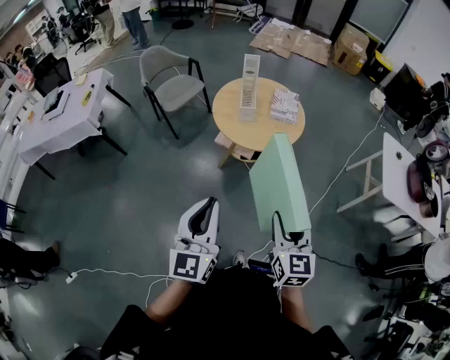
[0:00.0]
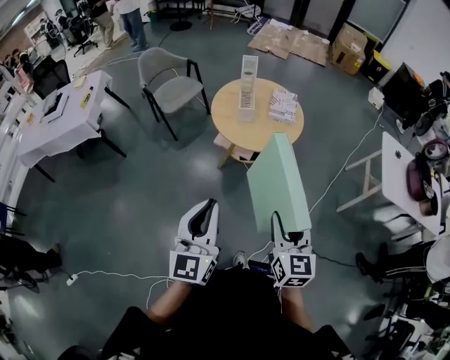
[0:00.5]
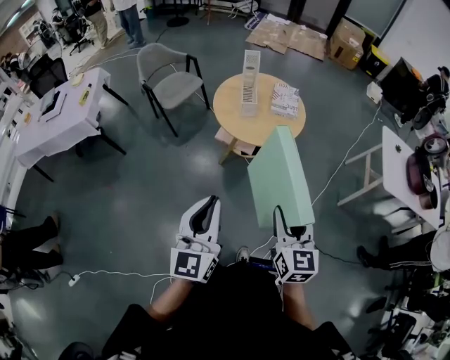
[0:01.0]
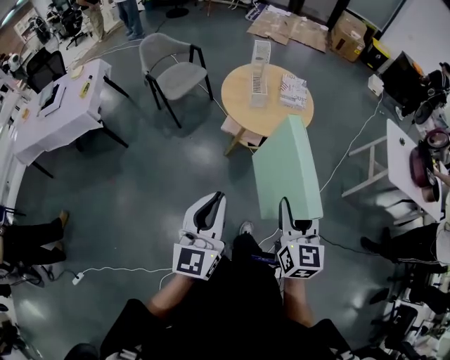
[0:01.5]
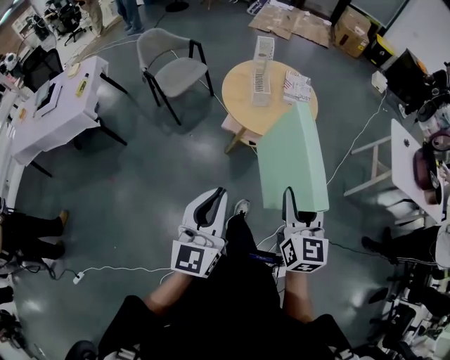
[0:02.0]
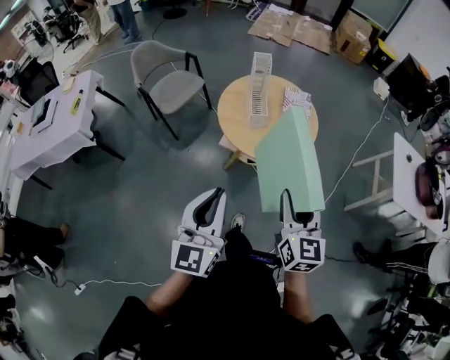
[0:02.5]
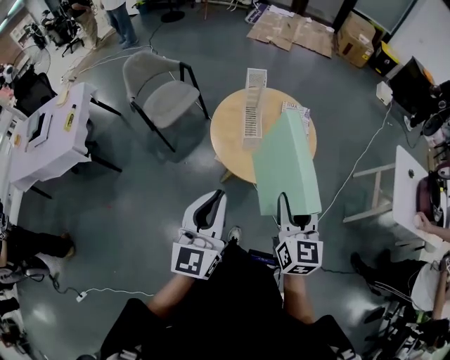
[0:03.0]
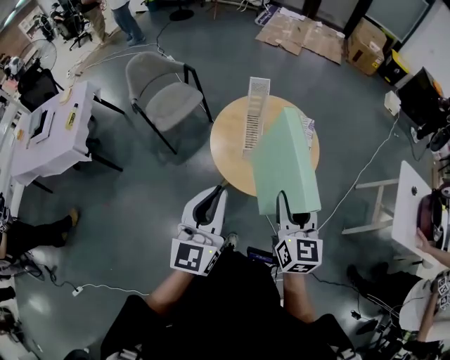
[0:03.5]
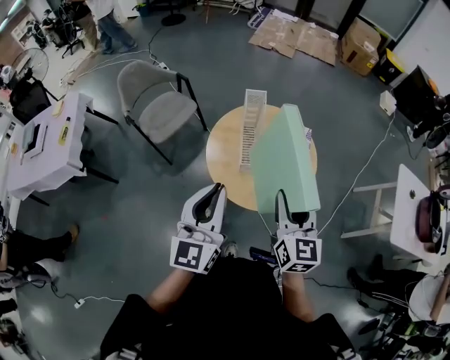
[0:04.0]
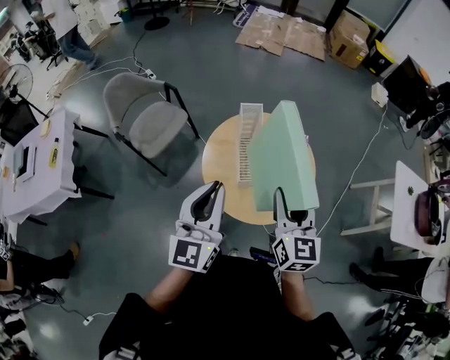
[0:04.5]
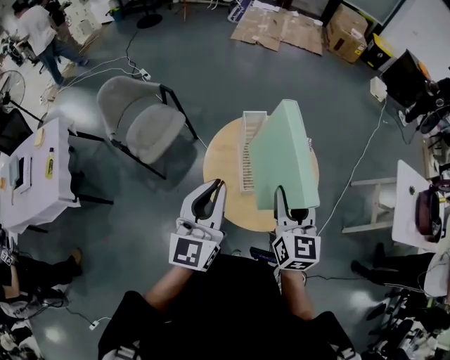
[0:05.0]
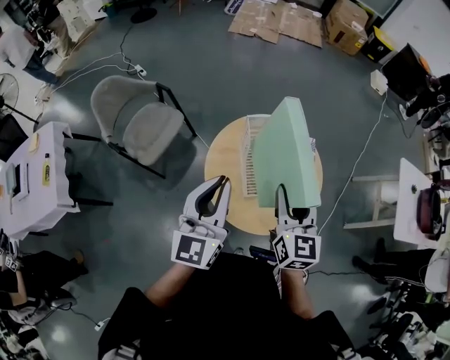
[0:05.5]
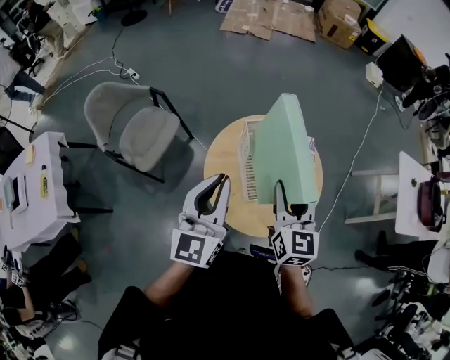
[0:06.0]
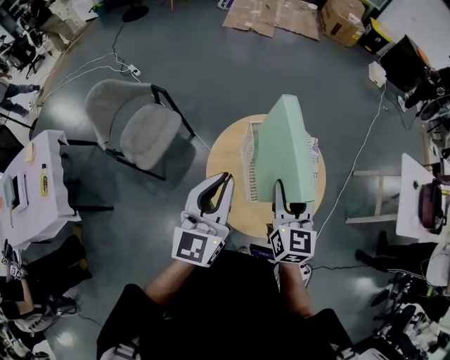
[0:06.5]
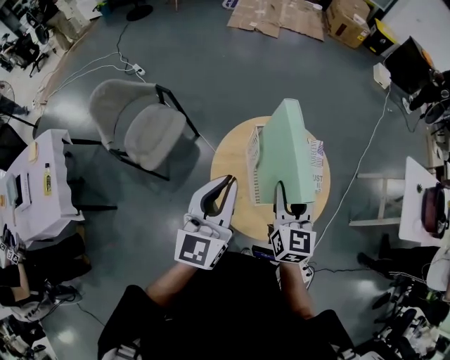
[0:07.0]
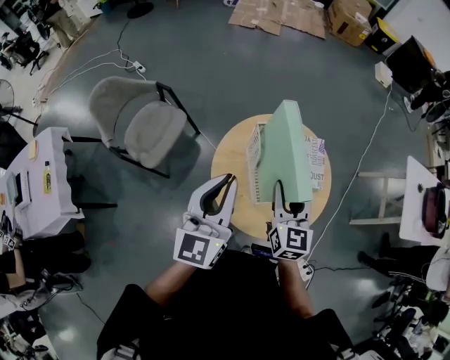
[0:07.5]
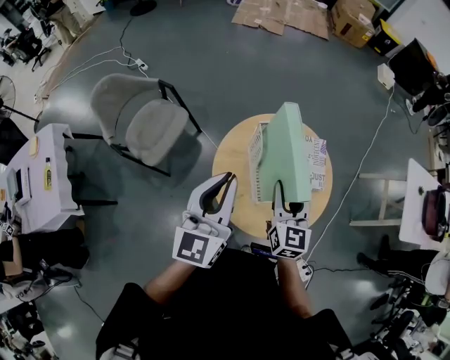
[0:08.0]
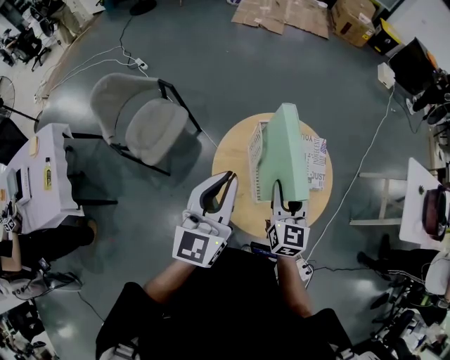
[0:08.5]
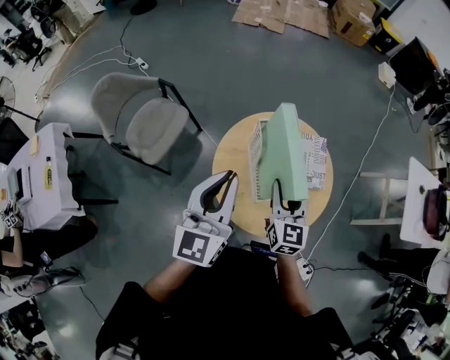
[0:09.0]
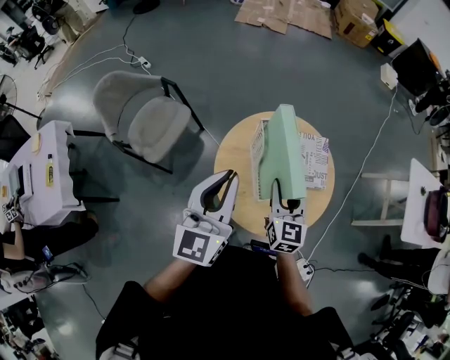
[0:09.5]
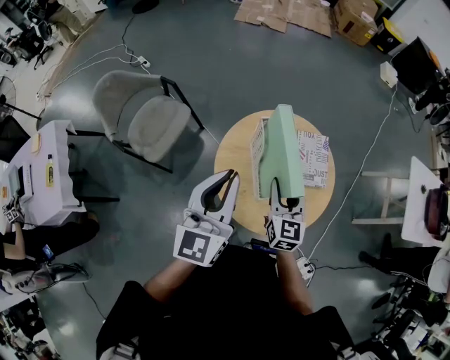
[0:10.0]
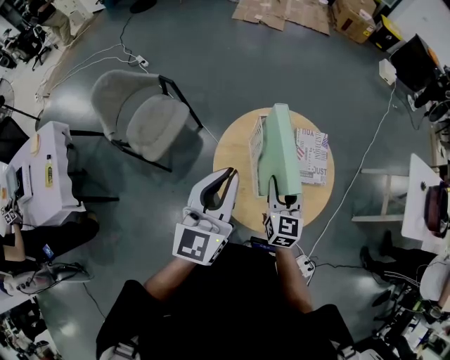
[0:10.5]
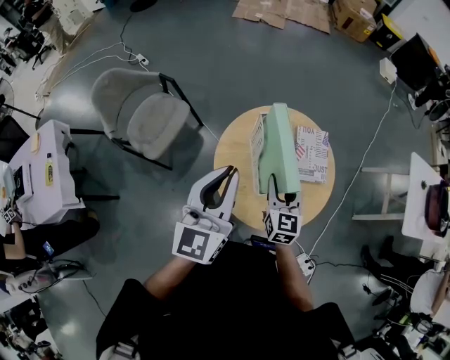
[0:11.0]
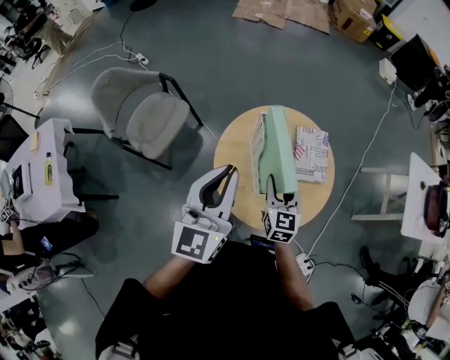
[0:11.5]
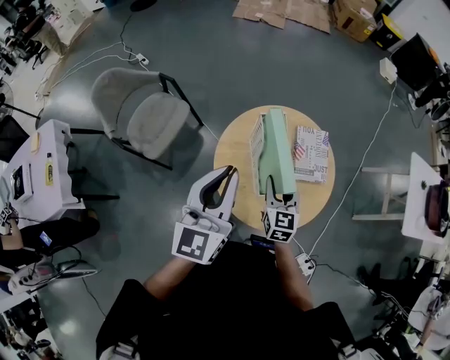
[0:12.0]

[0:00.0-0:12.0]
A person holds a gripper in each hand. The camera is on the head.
0:00.0 to 0:02.0: The right gripper travels to the left and forward by some 10 cm, while the left gripper heads to the left, covering about 10 cm.
0:02.0 to 0:04.0: Both grippers are carried forward, about 40 cm.
0:04.0 to 0:06.0: The right gripper heads forward and to the left, covering about 20 cm. Meanwhile the left gripper goes some 25 cm forward.
0:06.0 to 0:08.0: The right gripper moves downward, approximately 5 cm.
0:08.0 to 0:10.0: There are only small adjustments of the grippers.
0:10.0 to 0:12.0: The right gripper is displaced downward by some 5 cm.

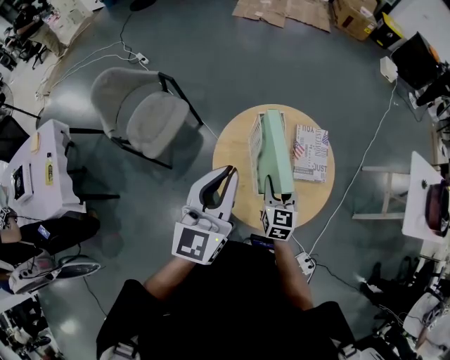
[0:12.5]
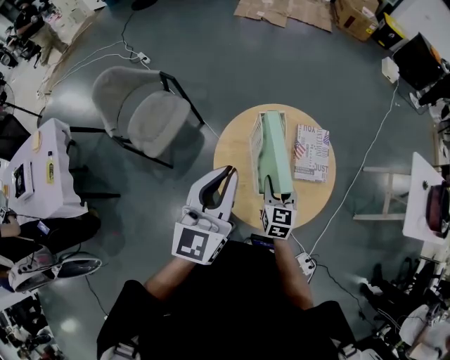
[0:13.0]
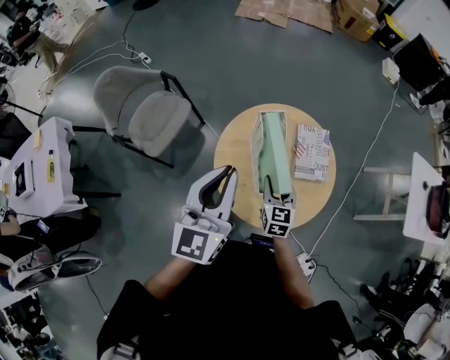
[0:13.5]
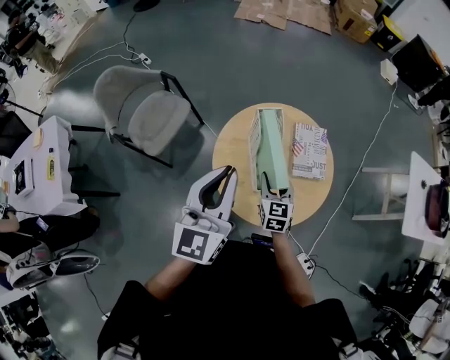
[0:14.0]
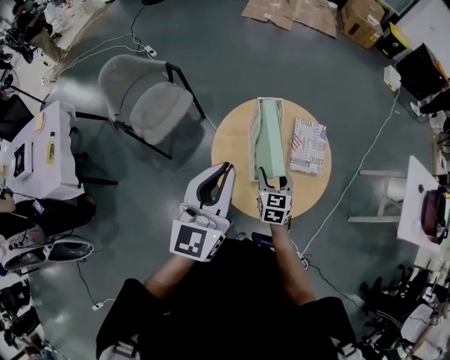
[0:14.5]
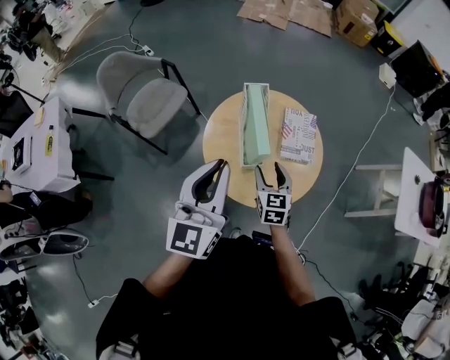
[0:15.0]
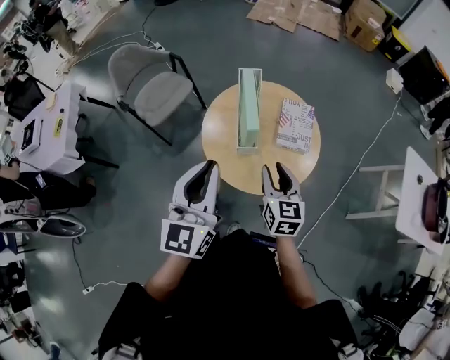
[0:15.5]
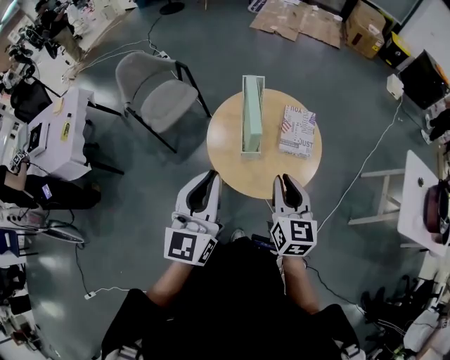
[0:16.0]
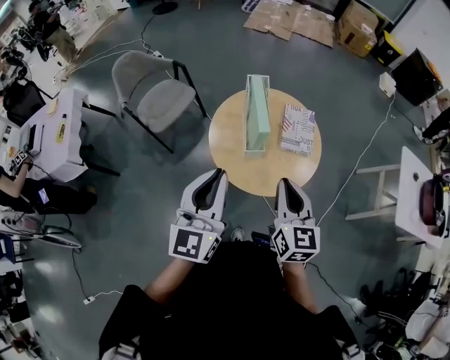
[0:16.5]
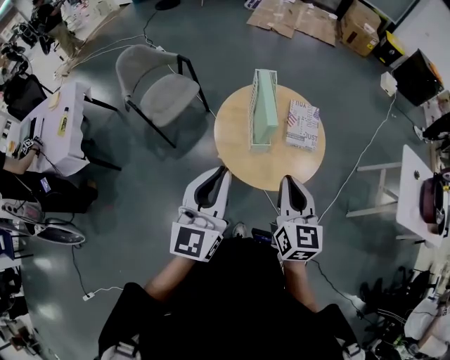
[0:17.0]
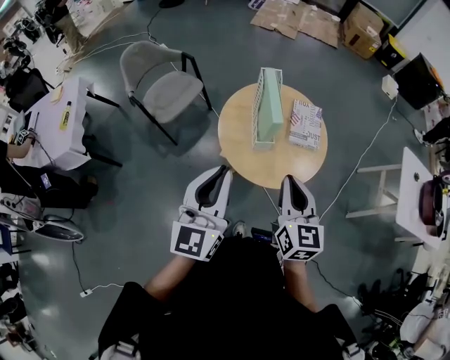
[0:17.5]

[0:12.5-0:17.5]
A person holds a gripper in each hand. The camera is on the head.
0:12.5 to 0:15.0: The right gripper travels backward by about 10 cm, and opens. The left gripper travels backward and to the right by about 15 cm.
0:15.0 to 0:17.5: The right gripper shifts about 30 cm upward and backward, and closes its fingers. The left gripper travels backward by roughly 15 cm.

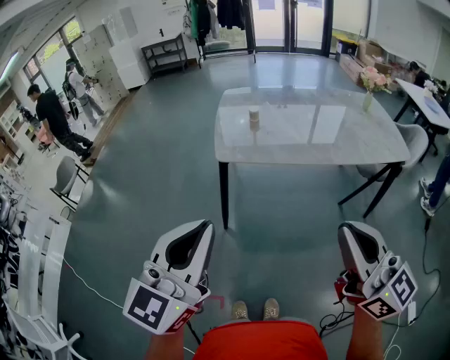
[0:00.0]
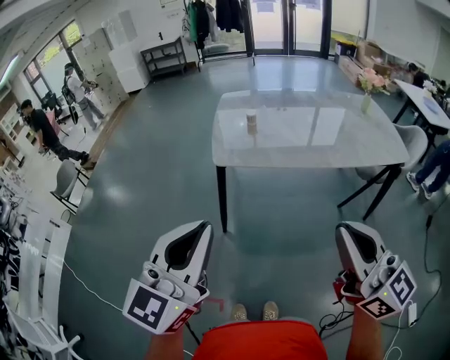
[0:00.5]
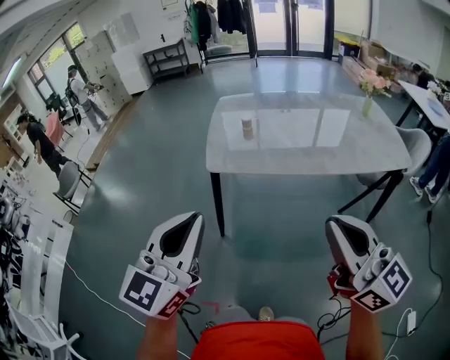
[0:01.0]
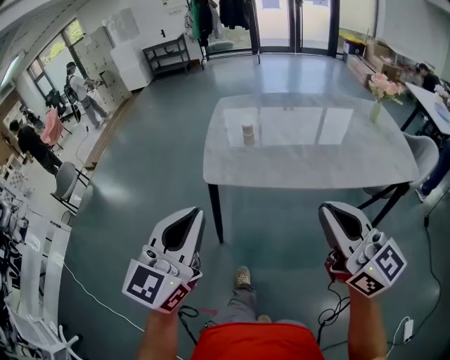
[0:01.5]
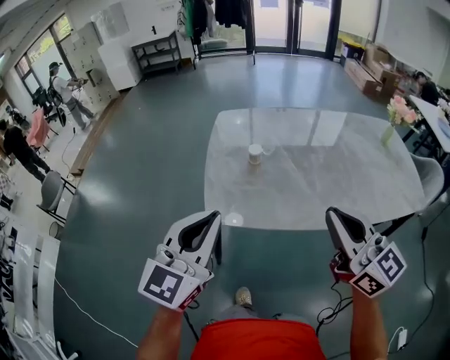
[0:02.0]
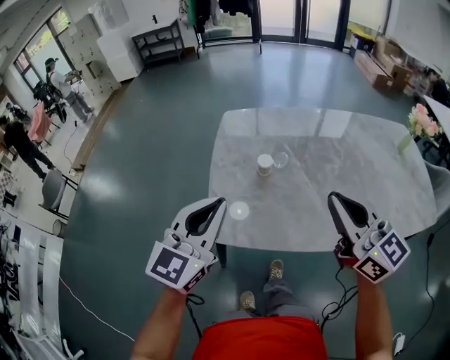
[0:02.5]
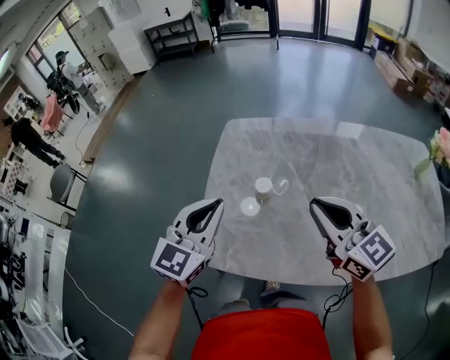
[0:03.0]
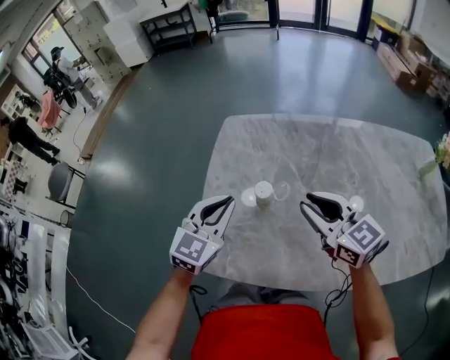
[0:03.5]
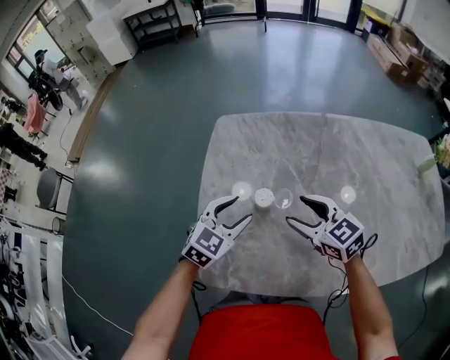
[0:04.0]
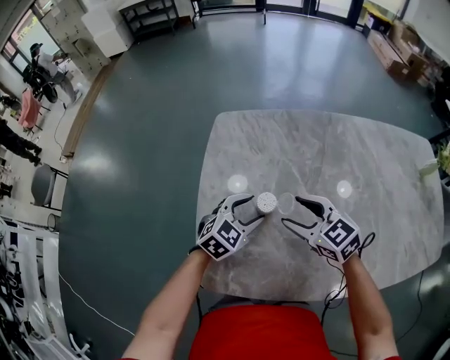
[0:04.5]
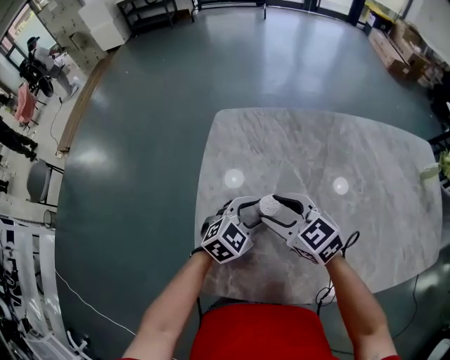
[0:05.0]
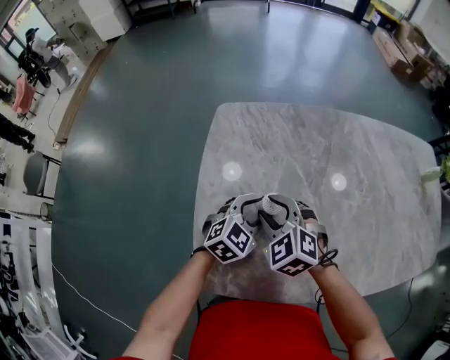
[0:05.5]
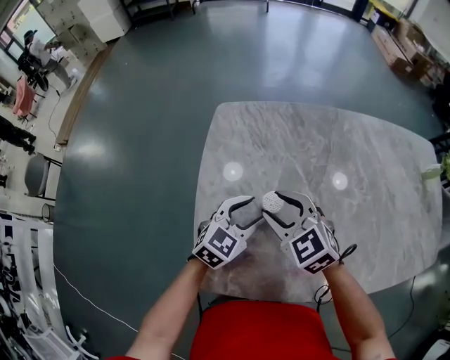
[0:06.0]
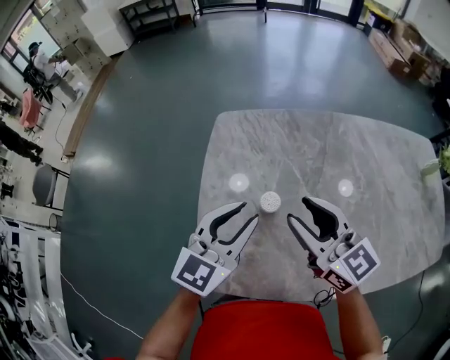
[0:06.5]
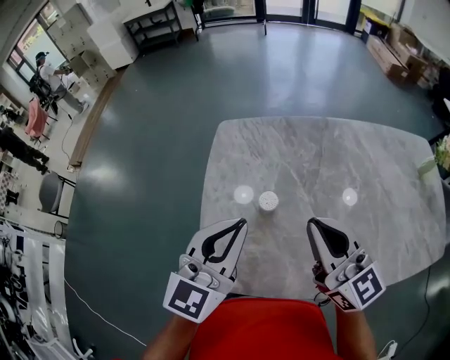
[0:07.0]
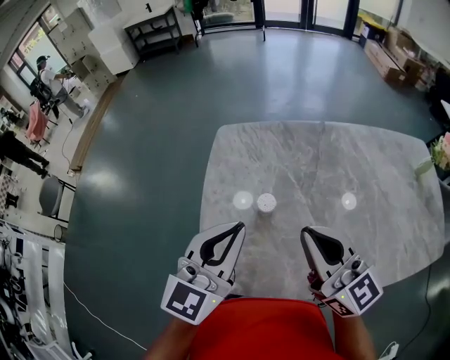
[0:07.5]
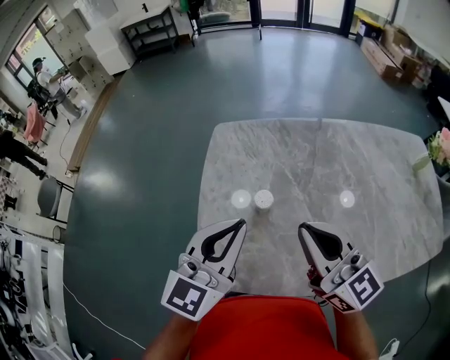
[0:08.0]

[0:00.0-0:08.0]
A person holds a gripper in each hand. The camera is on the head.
0:00.0 to 0:02.0: Both grippers move forward, some 35 cm.
0:02.0 to 0:04.0: Both grippers travel together forward and downward, some 40 cm. The right gripper tilts its fingers roughly 30 degrees downward, and opens up. The left gripper angles its fingers downward, by about 30 degrees, and opens up.
0:04.0 to 0:06.0: The right gripper moves to the left, approximately 10 cm.
0:06.0 to 0:08.0: The right gripper shifts roughly 25 cm upward, backward and to the right, points its fingers about 40 degrees further upward, and closes. Meanwhile the left gripper travels upward and backward by some 25 cm, changes its angle by about 30 degrees, and closes its fingers.

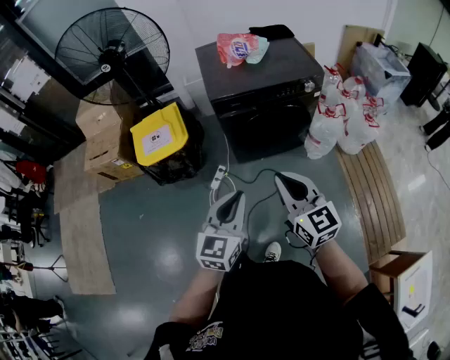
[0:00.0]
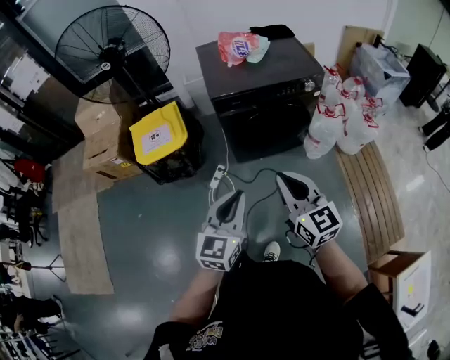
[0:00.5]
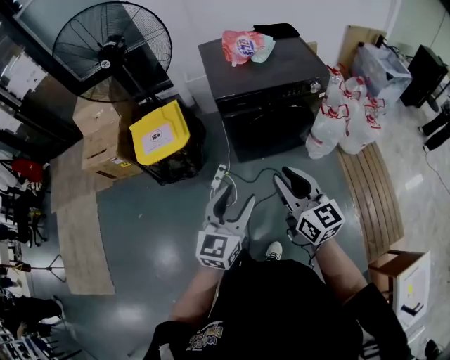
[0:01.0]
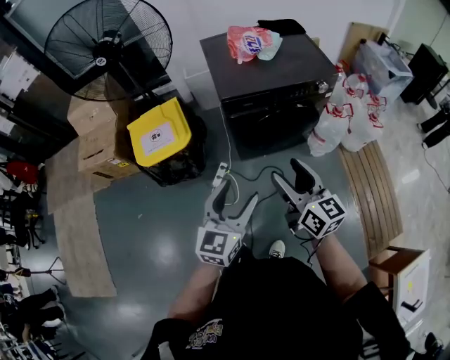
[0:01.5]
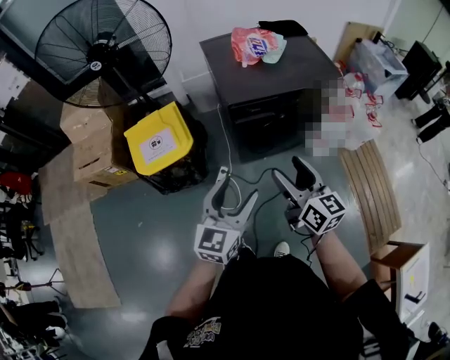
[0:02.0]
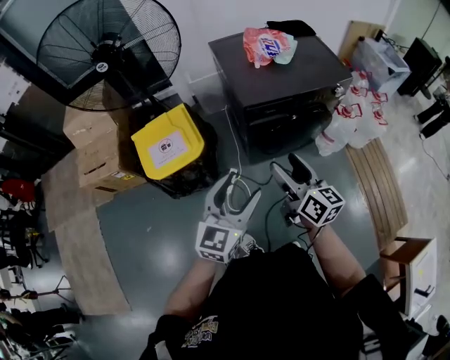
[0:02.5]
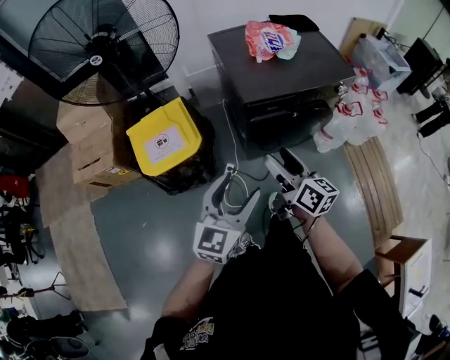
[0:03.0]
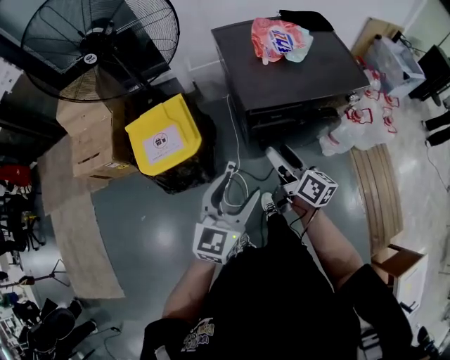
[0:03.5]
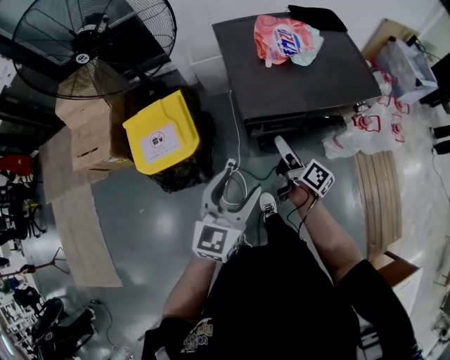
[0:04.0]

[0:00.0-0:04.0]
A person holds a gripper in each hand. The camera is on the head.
0:00.0 to 0:02.0: The grippers both shift forward and to the left by some 15 cm. The left gripper opens up, while the right gripper turns by about 20 degrees, and opens.
0:02.0 to 0:04.0: The left gripper moves forward, about 15 cm, while the right gripper heads forward and downward, covering about 30 cm, and rotates around the line of its fingers by some 50 degrees, clockwise from behind.
